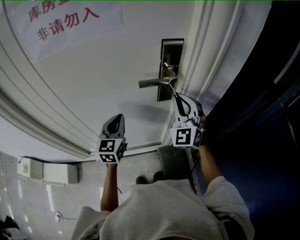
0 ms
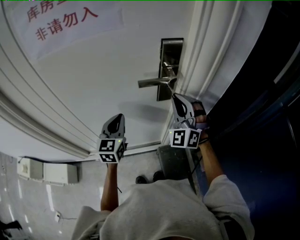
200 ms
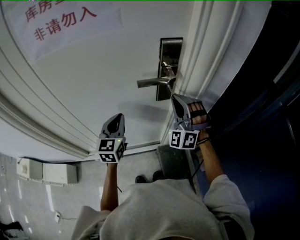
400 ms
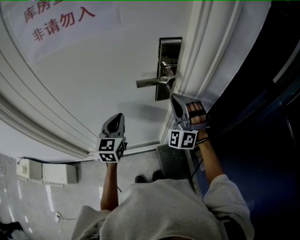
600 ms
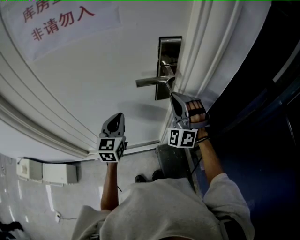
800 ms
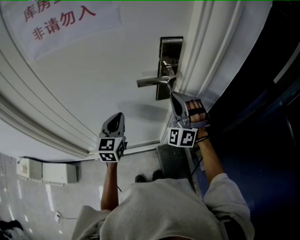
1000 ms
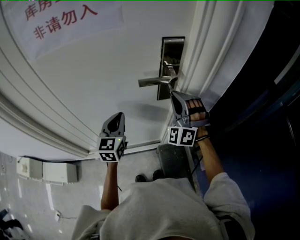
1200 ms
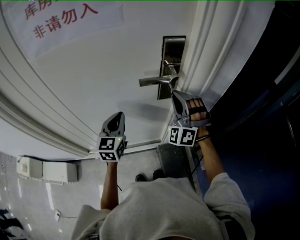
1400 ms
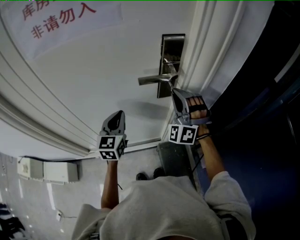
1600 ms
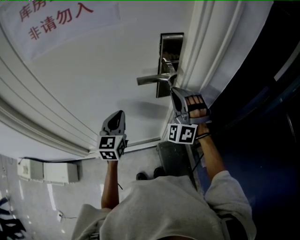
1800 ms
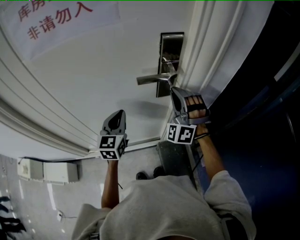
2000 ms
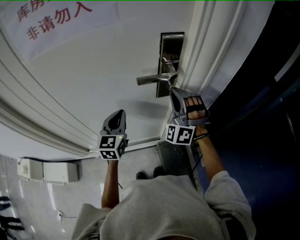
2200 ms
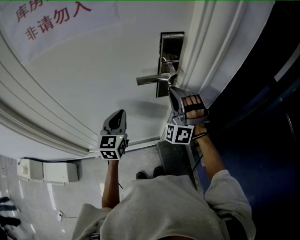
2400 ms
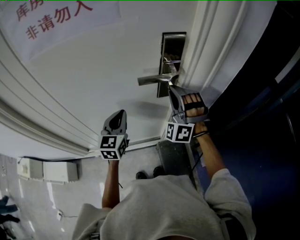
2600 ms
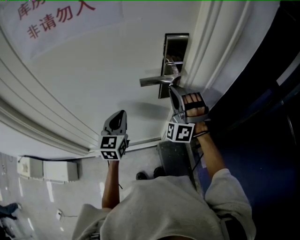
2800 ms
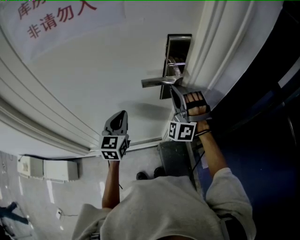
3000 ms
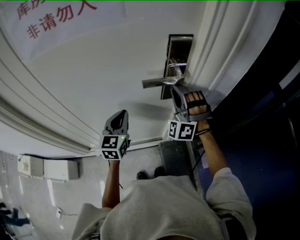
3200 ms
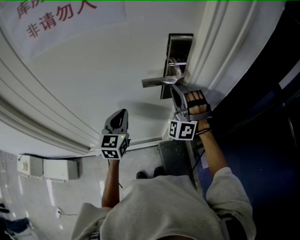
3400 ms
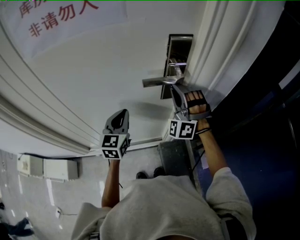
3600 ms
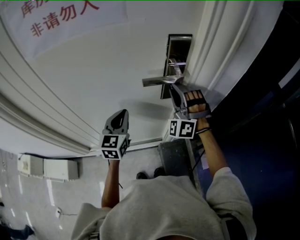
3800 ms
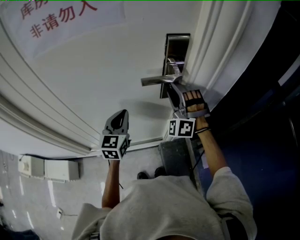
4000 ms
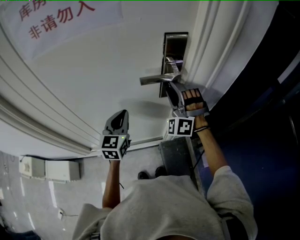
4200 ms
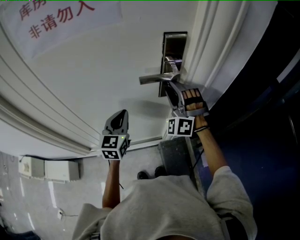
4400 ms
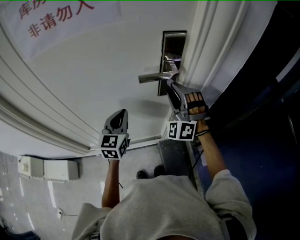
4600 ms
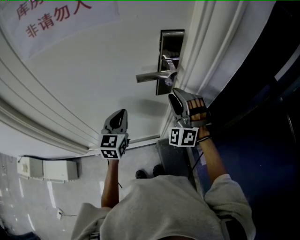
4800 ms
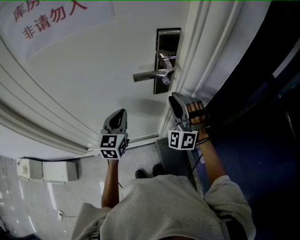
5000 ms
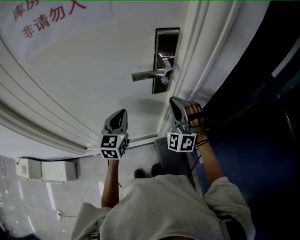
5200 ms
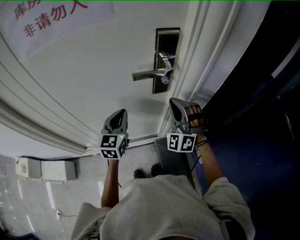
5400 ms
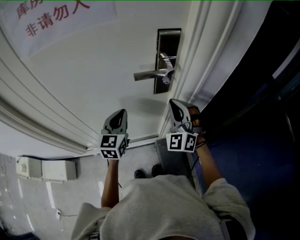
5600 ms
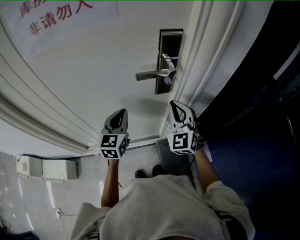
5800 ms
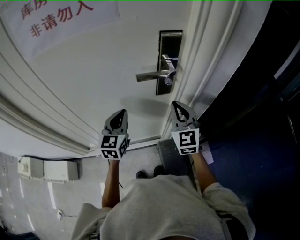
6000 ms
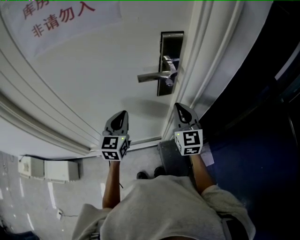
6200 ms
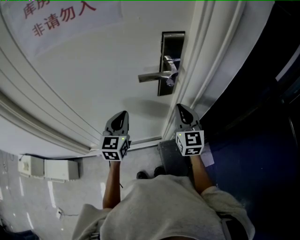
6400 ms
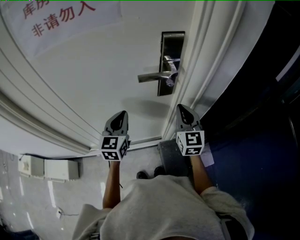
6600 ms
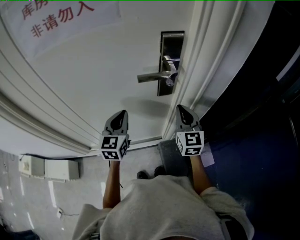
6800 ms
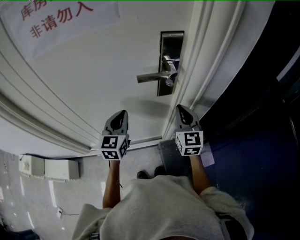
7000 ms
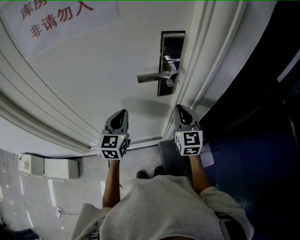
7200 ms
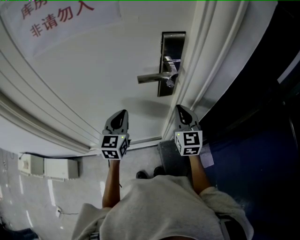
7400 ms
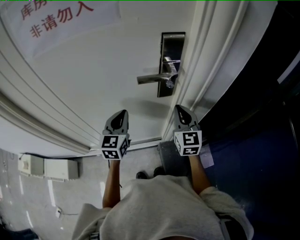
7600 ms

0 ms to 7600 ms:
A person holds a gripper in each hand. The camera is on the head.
0 ms to 1600 ms: The right gripper turns by some 30 degrees.
1600 ms to 3000 ms: The grippers make only small movements.
3000 ms to 4600 ms: The right gripper opens up.
4600 ms to 6000 ms: The right gripper moves approximately 5 cm, rolls clockwise, seen from behind, by approximately 60 degrees, and closes up.
6000 ms to 7600 ms: The grippers make only small movements.

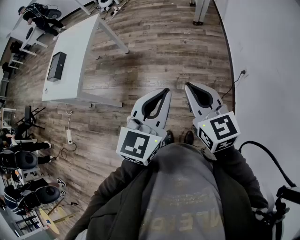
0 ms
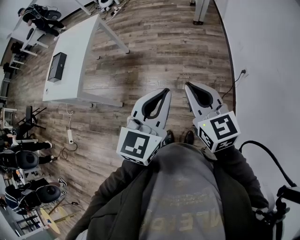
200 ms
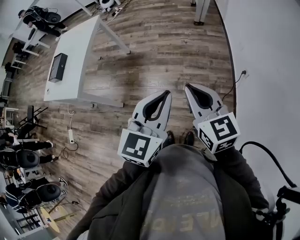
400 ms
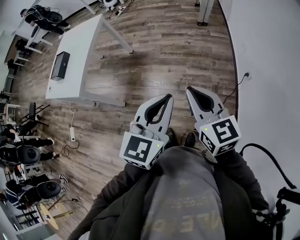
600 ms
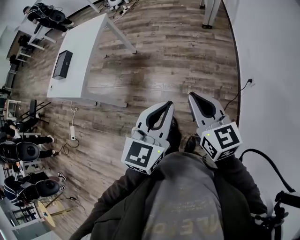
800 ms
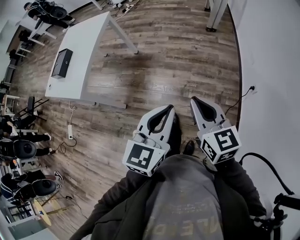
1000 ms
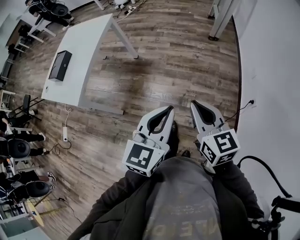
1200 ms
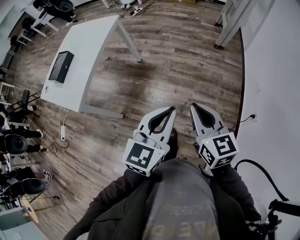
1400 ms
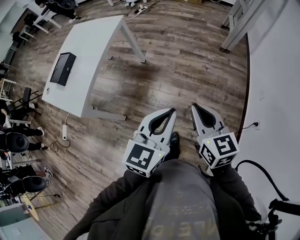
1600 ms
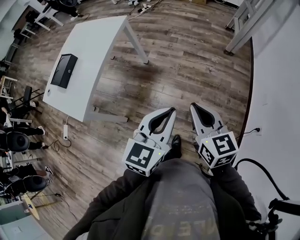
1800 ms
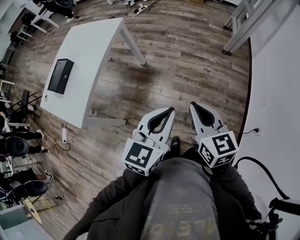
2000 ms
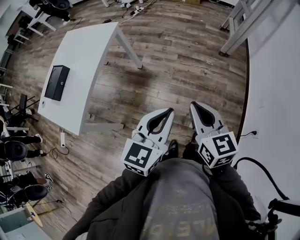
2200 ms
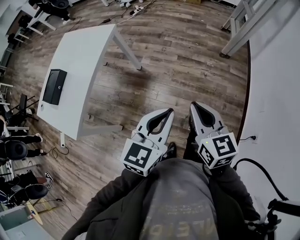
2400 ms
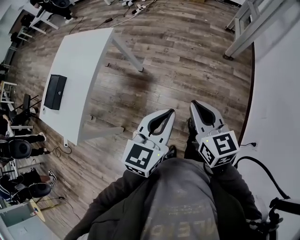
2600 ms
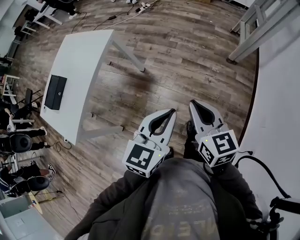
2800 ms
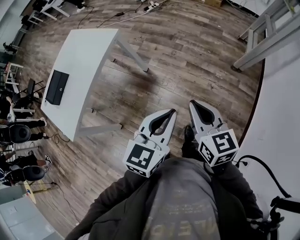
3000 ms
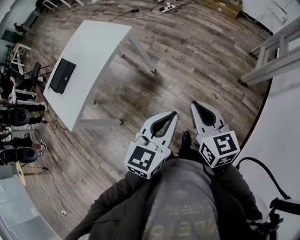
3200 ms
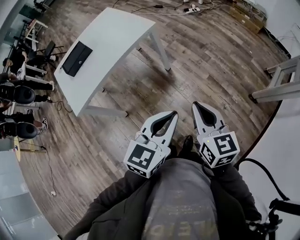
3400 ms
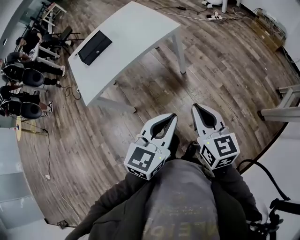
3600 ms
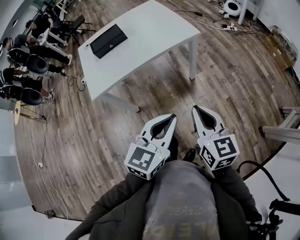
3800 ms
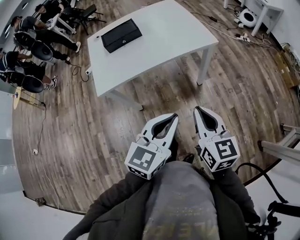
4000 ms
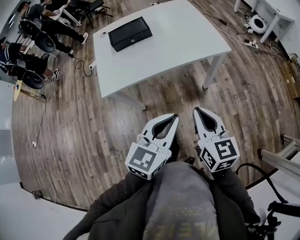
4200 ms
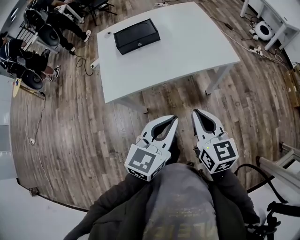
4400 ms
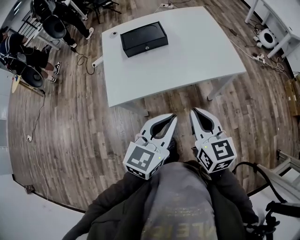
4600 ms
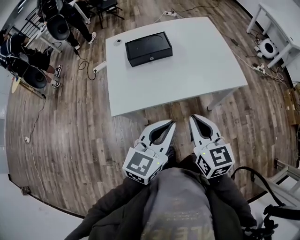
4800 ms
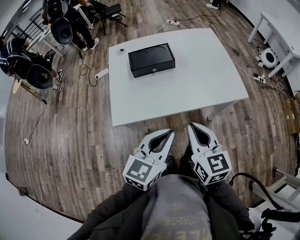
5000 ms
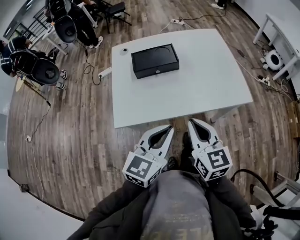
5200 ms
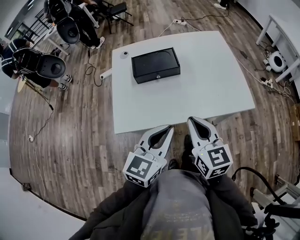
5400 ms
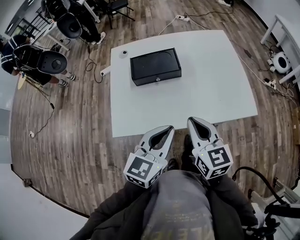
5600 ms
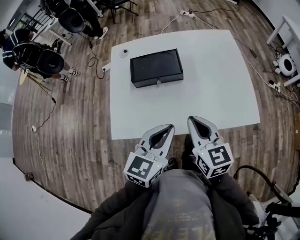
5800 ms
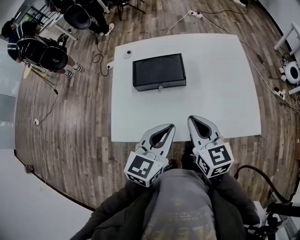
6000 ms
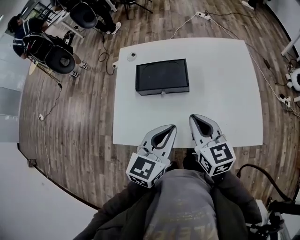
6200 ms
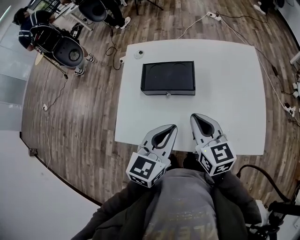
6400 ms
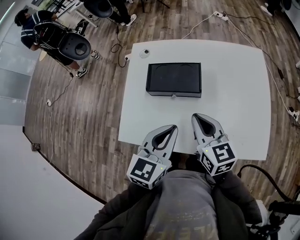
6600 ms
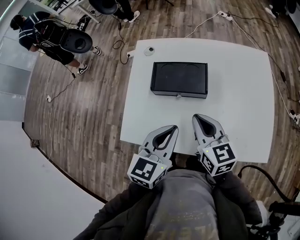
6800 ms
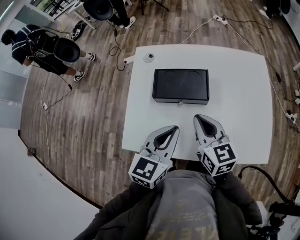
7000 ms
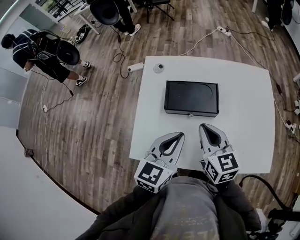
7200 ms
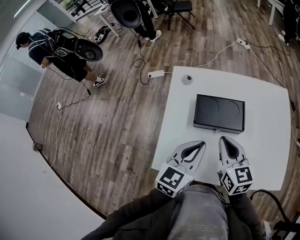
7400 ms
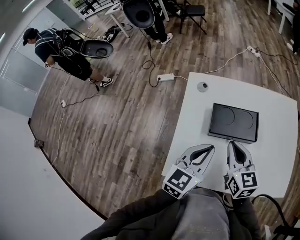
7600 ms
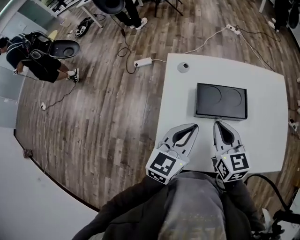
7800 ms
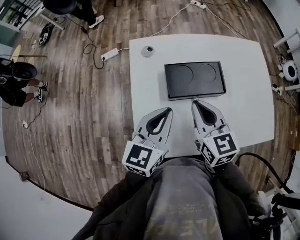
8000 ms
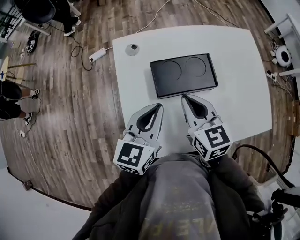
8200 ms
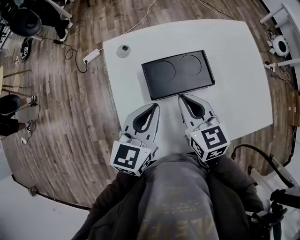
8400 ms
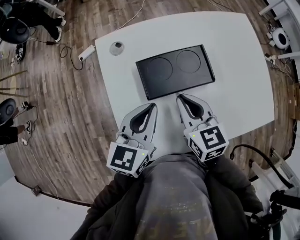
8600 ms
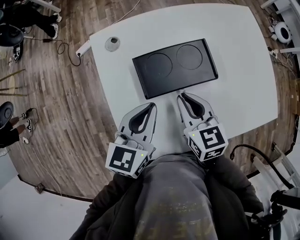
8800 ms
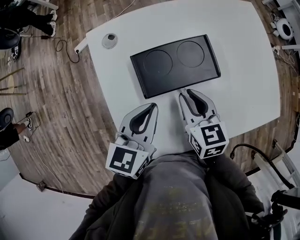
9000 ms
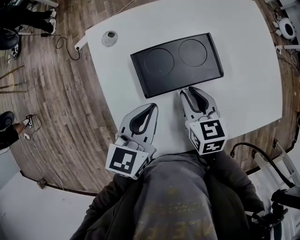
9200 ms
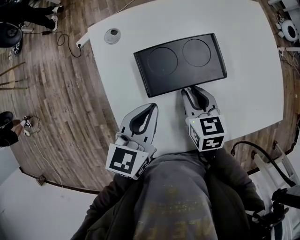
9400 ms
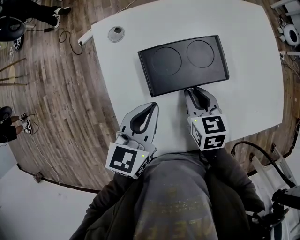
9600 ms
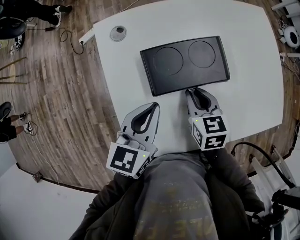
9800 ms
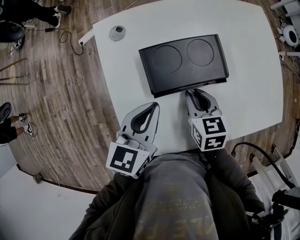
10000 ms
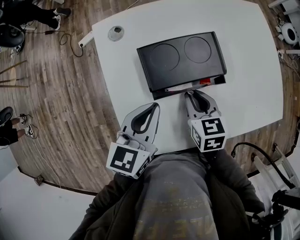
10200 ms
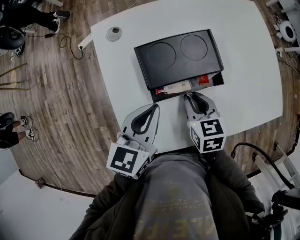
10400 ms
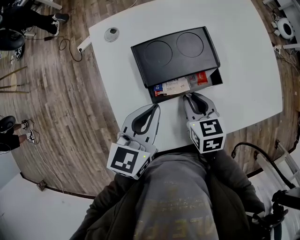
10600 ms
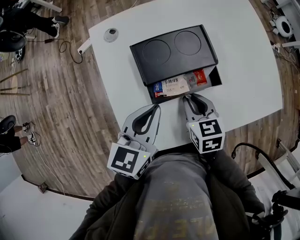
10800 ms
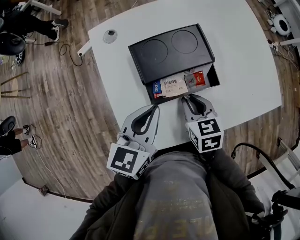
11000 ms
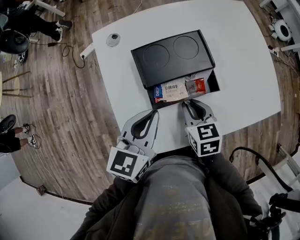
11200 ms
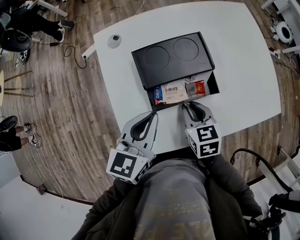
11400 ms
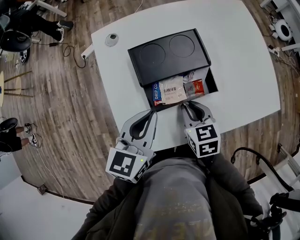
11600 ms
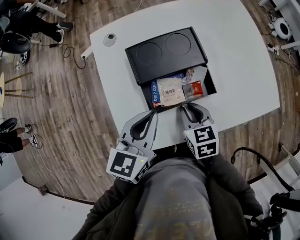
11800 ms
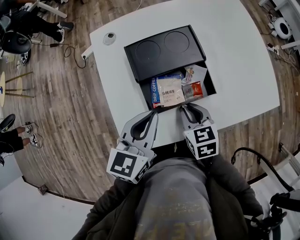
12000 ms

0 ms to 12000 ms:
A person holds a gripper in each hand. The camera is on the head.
0 ms to 1600 ms: The grippers both shift forward by about 25 cm.
1600 ms to 3000 ms: The two grippers go approximately 30 cm forward.
3000 ms to 4400 ms: The right gripper shifts by roughly 40 cm, and rotates roughly 50 degrees. The left gripper shifts by about 35 cm, and rotates roughly 50 degrees.
4400 ms to 6000 ms: The grippers both shift forward by some 30 cm.
6000 ms to 7600 ms: The right gripper shifts roughly 20 cm forward and to the left, while the left gripper goes some 20 cm to the left and forward.
7600 ms to 9000 ms: The right gripper moves downward, roughly 10 cm, and turns by some 20 degrees; the left gripper heads downward and forward, covering some 10 cm.
9000 ms to 10400 ms: The grippers make only small movements.
10400 ms to 12000 ms: The grippers both shift backward by about 5 cm.

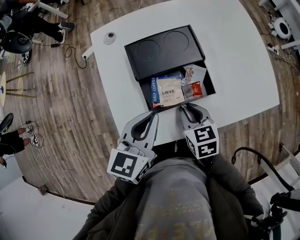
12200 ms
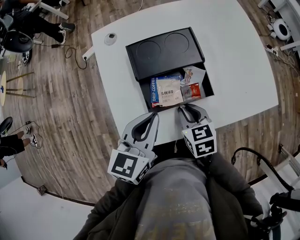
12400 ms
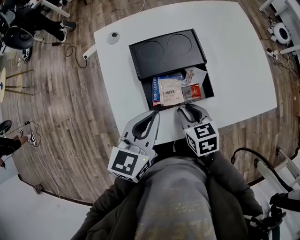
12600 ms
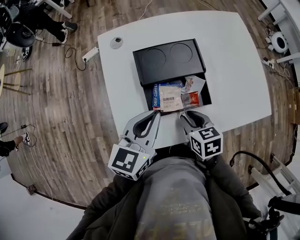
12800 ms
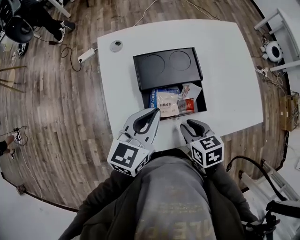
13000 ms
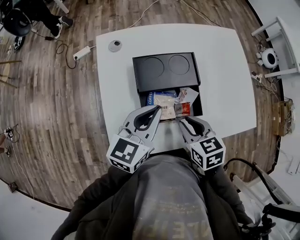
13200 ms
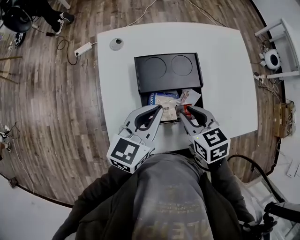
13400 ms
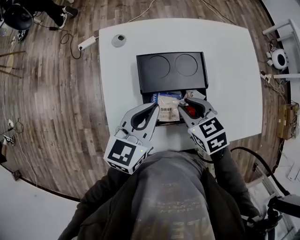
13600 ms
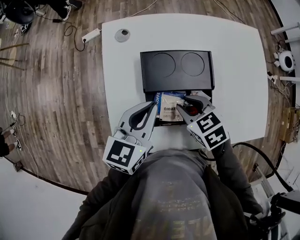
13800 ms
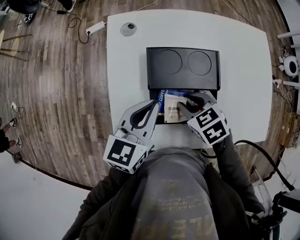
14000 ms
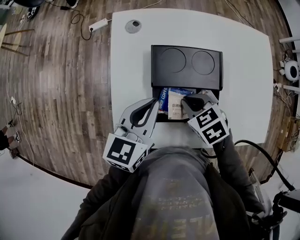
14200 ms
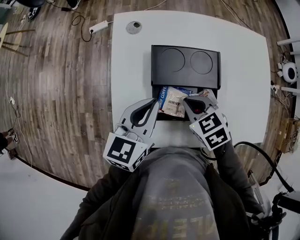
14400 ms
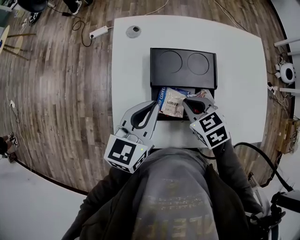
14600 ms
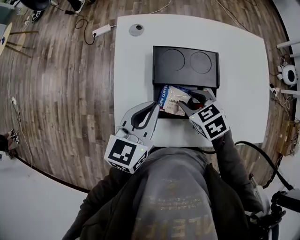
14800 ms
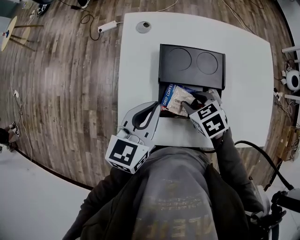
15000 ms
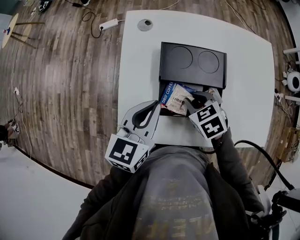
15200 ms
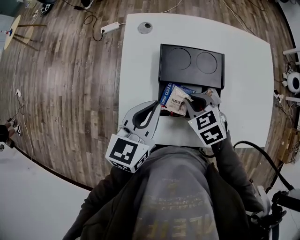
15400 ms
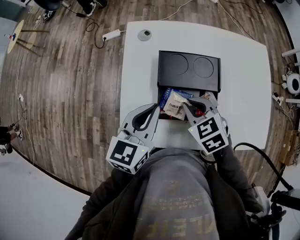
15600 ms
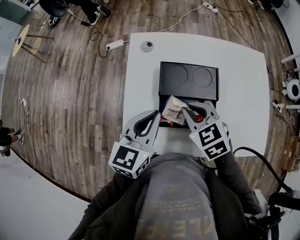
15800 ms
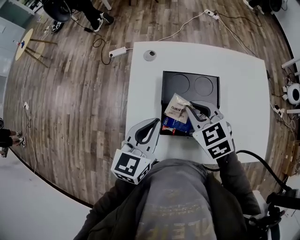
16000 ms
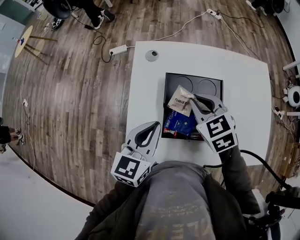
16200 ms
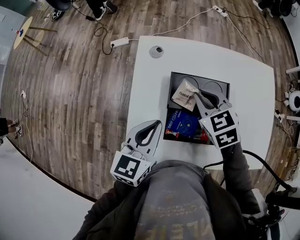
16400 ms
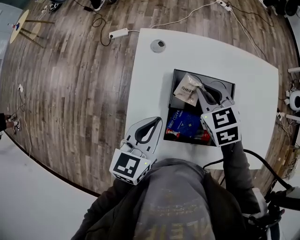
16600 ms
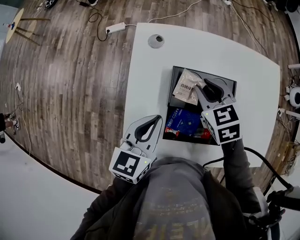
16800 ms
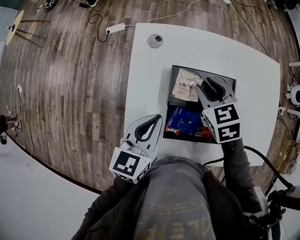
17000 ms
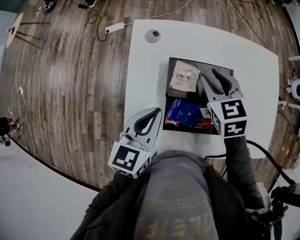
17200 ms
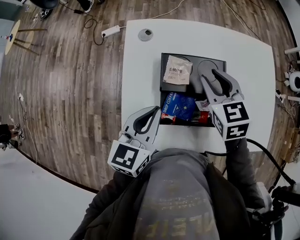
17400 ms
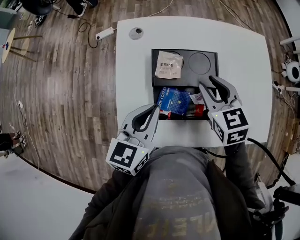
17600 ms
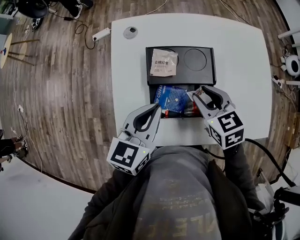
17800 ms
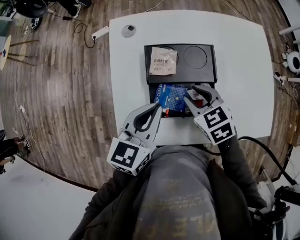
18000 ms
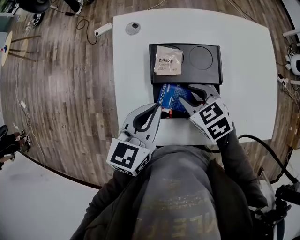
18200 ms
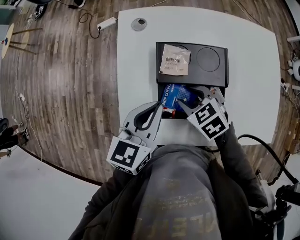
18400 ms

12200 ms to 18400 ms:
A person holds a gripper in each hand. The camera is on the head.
12200 ms to 13800 ms: Both grippers move forward, some 10 cm. The right gripper rotates some 30 degrees.
13800 ms to 15400 ms: The grippers move only a little.
15400 ms to 16800 ms: The right gripper moves forward and upward, some 15 cm.
16800 ms to 18400 ms: The right gripper shifts some 15 cm backward and downward, and opens up.
